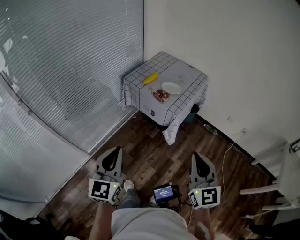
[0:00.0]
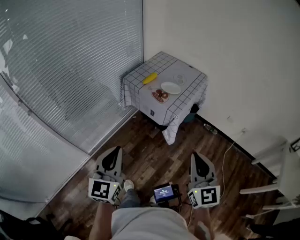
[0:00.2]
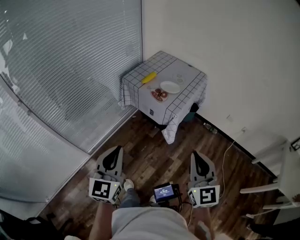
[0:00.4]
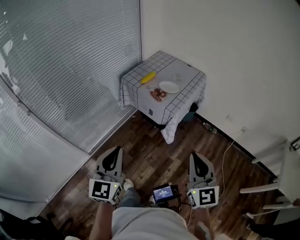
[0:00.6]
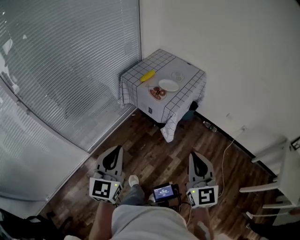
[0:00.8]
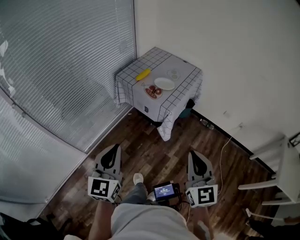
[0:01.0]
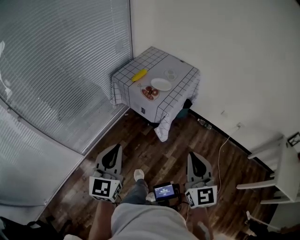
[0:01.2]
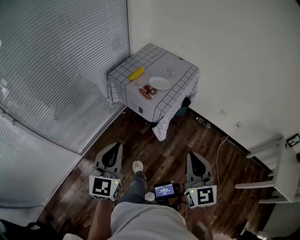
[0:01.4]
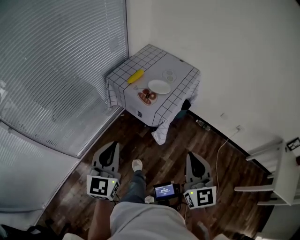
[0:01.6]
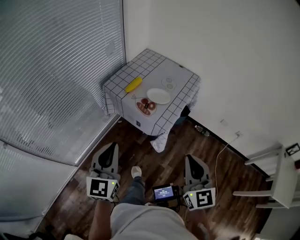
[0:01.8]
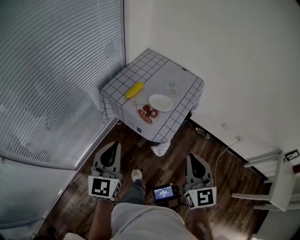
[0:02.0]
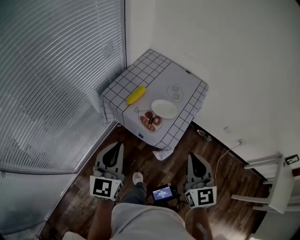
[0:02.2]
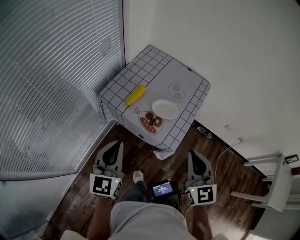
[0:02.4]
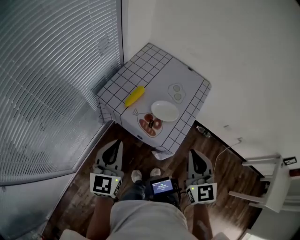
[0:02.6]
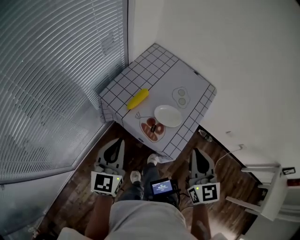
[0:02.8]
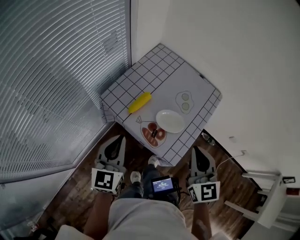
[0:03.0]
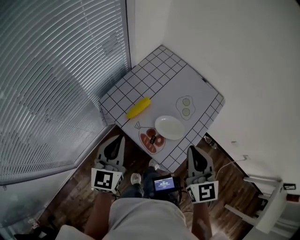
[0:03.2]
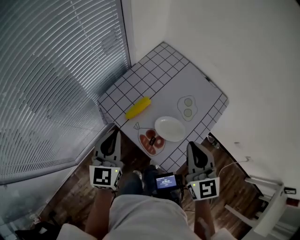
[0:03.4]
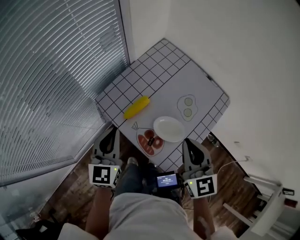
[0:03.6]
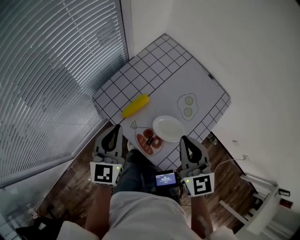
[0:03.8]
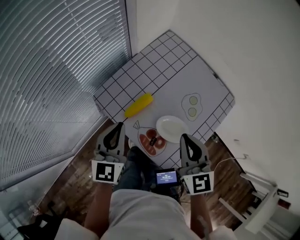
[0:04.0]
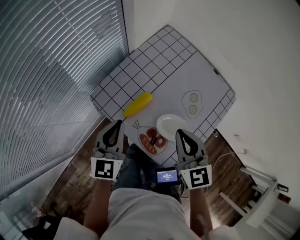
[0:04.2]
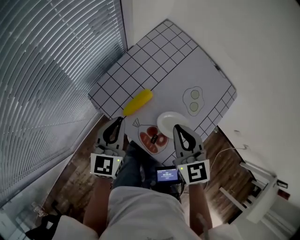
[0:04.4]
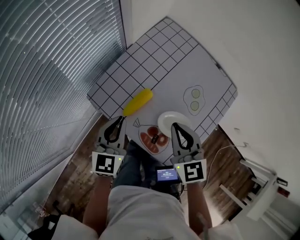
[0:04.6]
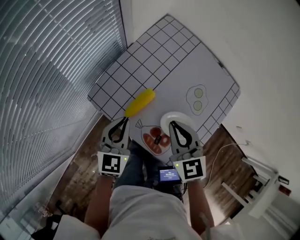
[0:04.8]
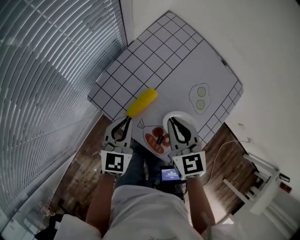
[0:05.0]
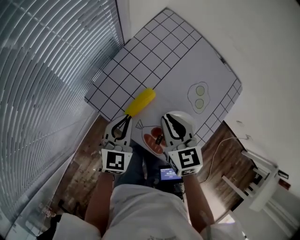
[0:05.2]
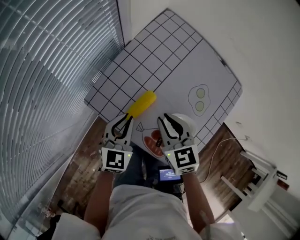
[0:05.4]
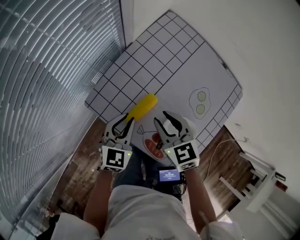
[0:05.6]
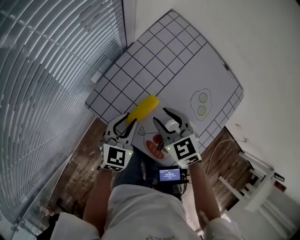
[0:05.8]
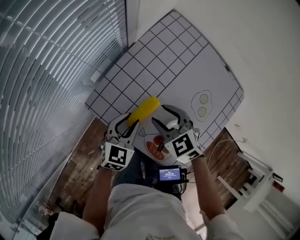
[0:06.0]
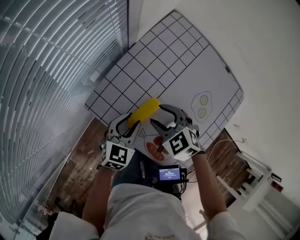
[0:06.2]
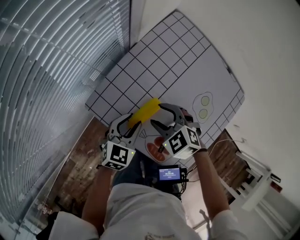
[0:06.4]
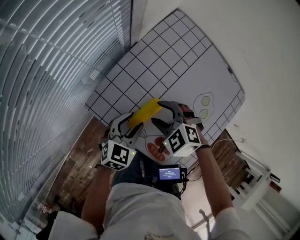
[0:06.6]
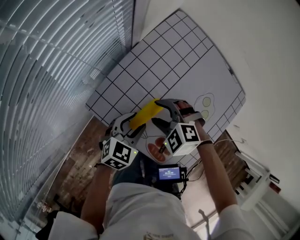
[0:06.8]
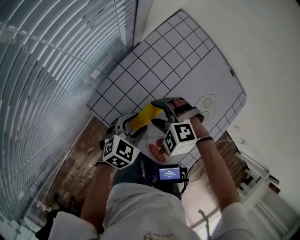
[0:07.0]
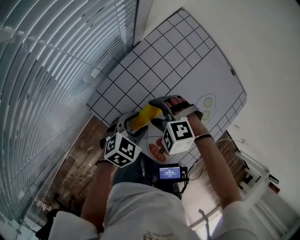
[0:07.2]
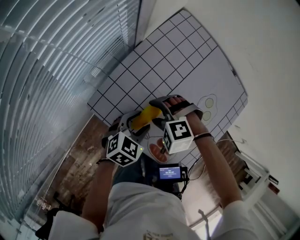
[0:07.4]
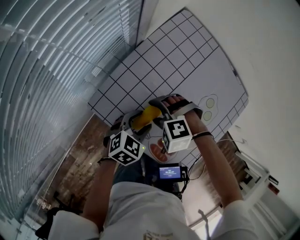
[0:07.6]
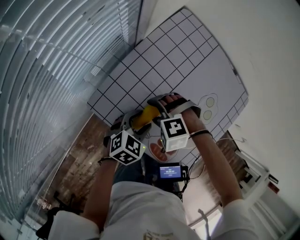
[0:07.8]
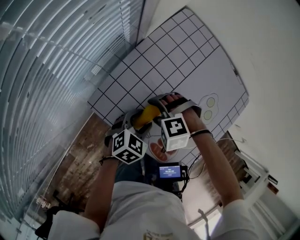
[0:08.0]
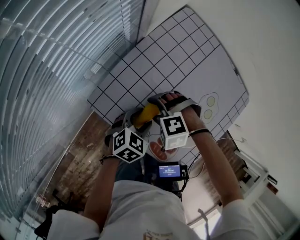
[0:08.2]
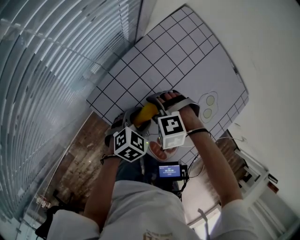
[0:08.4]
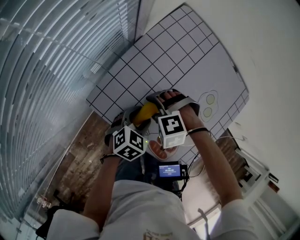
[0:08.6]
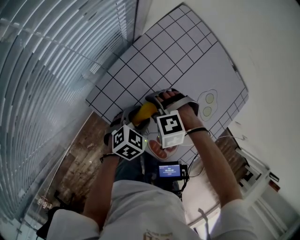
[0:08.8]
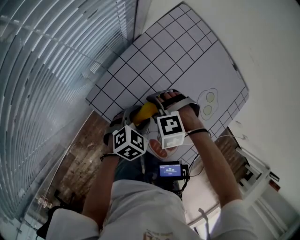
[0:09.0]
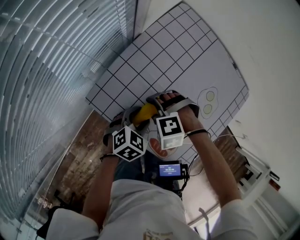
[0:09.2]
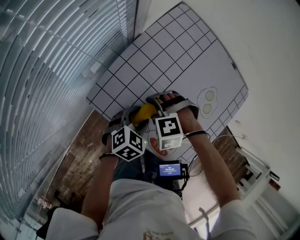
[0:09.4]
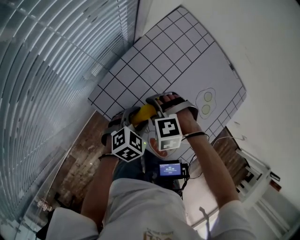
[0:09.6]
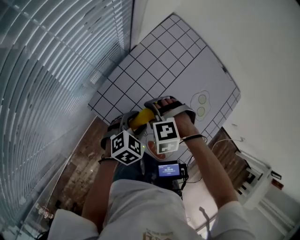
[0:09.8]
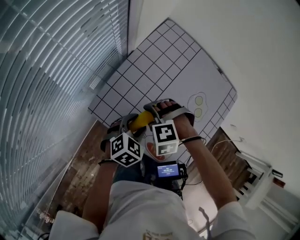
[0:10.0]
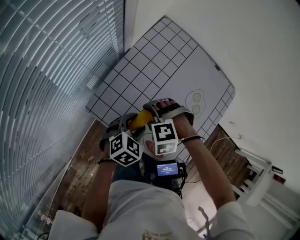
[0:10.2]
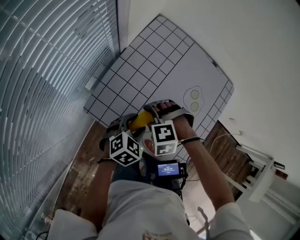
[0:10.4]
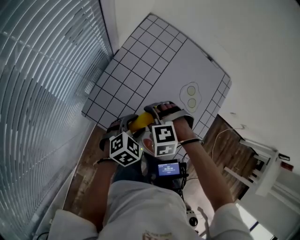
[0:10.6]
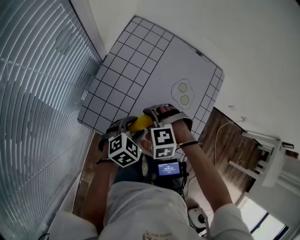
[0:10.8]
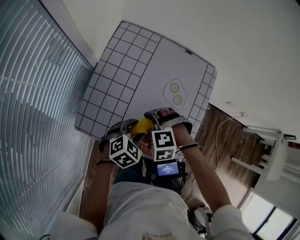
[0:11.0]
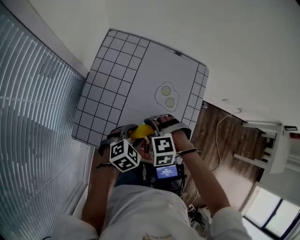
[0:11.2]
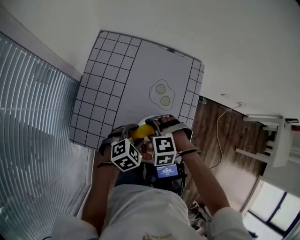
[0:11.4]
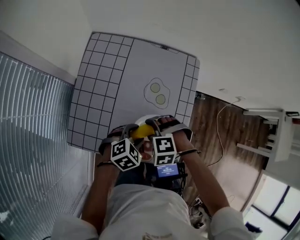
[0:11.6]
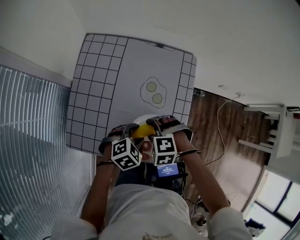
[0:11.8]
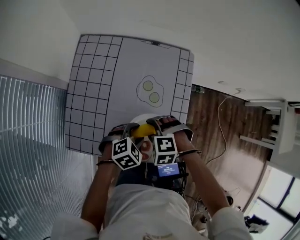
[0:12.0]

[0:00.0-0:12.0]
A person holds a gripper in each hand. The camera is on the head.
0:00.0 to 0:01.6: Both grippers move forward, some 10 cm.
0:01.6 to 0:03.0: Both grippers travel together forward, roughly 35 cm.
0:03.0 to 0:04.4: The two grippers go roughly 20 cm forward and downward.
0:04.4 to 0:06.0: The left gripper heads downward, covering approximately 10 cm, swivels about 20 degrees, and opens up. Meanwhile the right gripper shifts approximately 15 cm downward, to the left and forward, swivels roughly 30 degrees, and opens up.
0:06.0 to 0:07.6: The right gripper shifts approximately 5 cm downward, and rolls counterclockwise, seen from behind, by some 50 degrees; the left gripper changes its angle by roughly 20 degrees, and opens its fingers.
0:07.6 to 0:09.0: The grippers move only a little.
0:09.0 to 0:10.4: The left gripper moves roughly 5 cm; the right gripper moves some 5 cm.
0:10.4 to 0:12.0: The left gripper shifts by roughly 15 cm, and rotates roughly 40 degrees; the right gripper ends up some 15 cm from where it was, and turns by some 30 degrees.

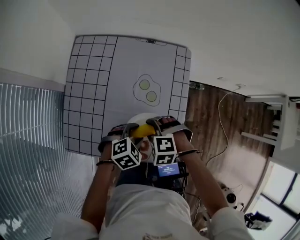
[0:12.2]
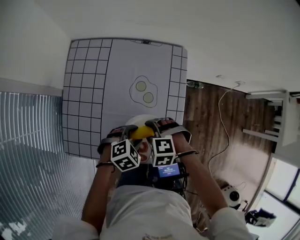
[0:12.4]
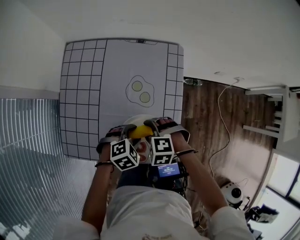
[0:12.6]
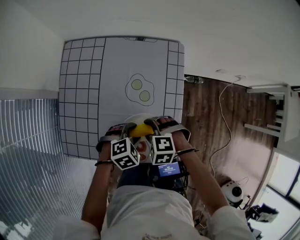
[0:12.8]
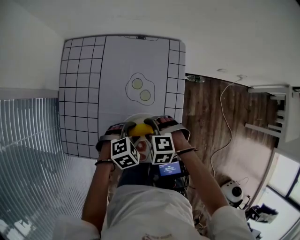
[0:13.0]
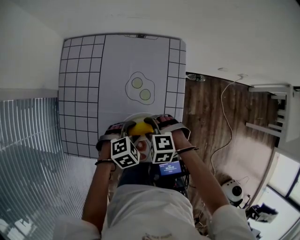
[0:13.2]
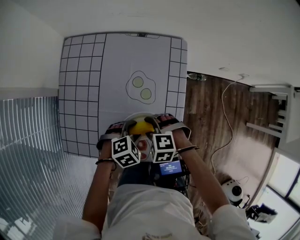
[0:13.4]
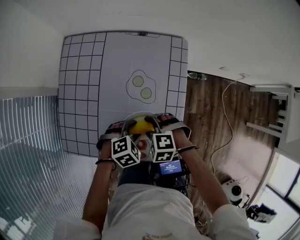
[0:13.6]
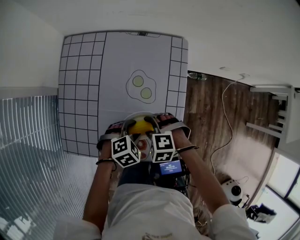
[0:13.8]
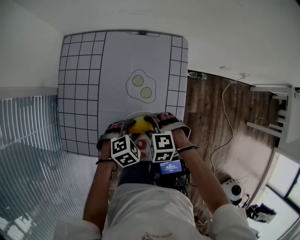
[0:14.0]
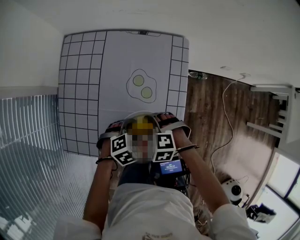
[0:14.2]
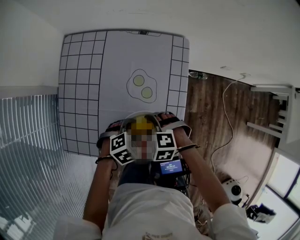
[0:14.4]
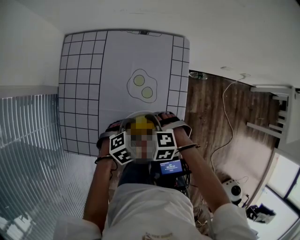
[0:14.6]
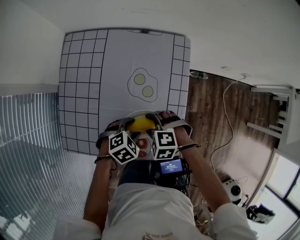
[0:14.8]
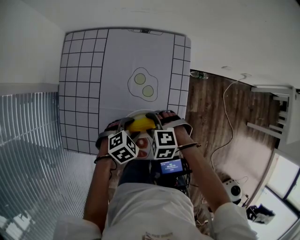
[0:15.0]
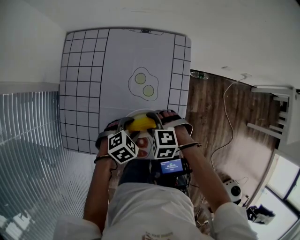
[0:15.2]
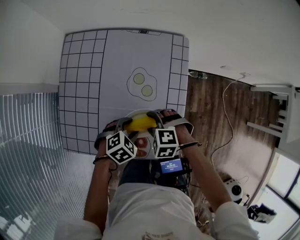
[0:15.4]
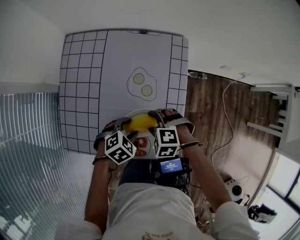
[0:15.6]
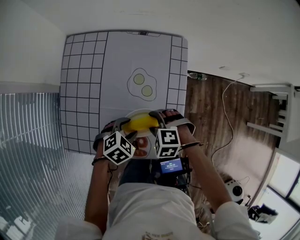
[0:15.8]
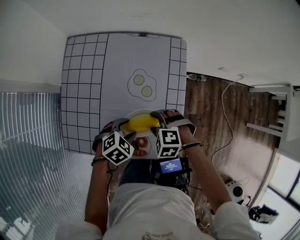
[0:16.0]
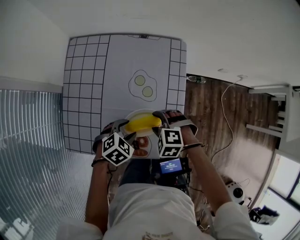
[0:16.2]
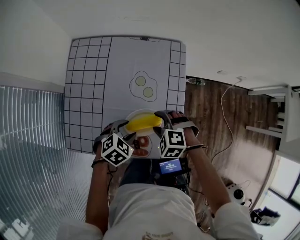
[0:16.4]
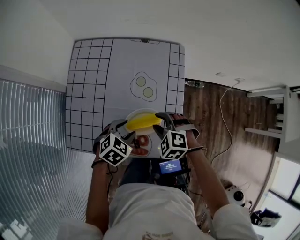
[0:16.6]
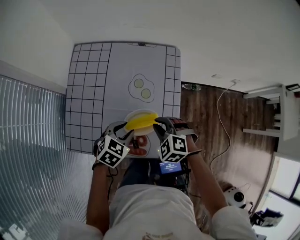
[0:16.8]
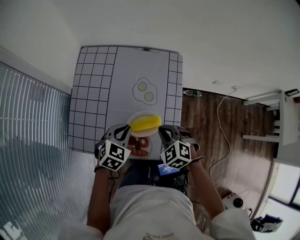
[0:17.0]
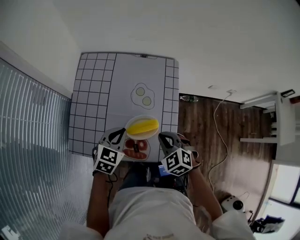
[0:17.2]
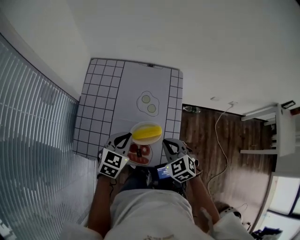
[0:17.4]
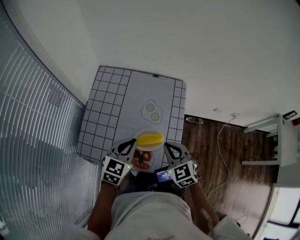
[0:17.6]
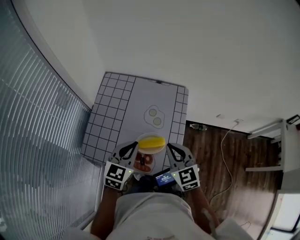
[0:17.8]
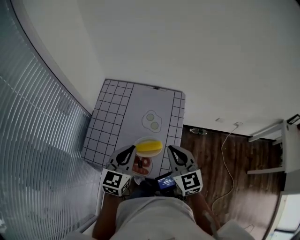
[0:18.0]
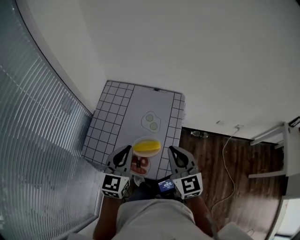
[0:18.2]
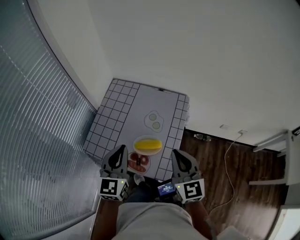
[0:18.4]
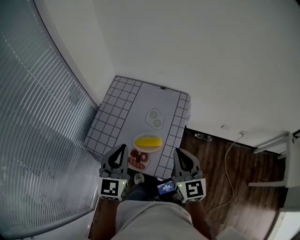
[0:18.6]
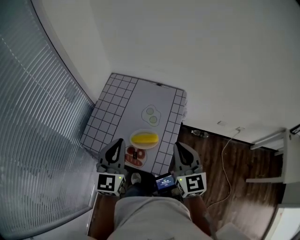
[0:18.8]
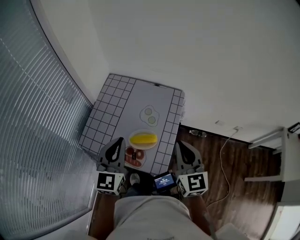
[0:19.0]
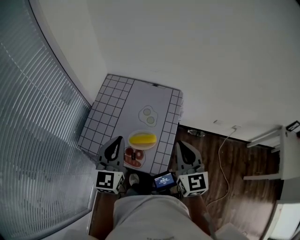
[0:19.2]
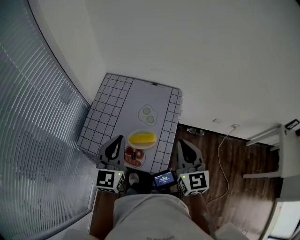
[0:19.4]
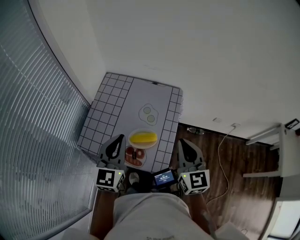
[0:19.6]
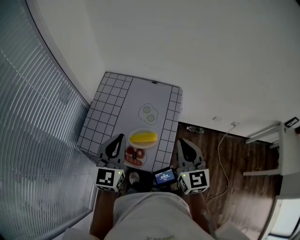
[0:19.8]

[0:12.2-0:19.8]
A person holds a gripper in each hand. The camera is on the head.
0:12.2 to 0:15.2: The grippers make only small movements.
0:15.2 to 0:16.8: The grippers both shift upward by roughly 5 cm. The left gripper swivels approximately 20 degrees. The right gripper turns by roughly 20 degrees, and closes its fingers.
0:16.8 to 0:18.2: The grippers both shift upward by approximately 20 cm. The right gripper tilts its fingers about 50 degrees upward. Meanwhile the left gripper tilts its fingers roughly 40 degrees upward, and closes.
0:18.2 to 0:19.8: The grippers move only a little.

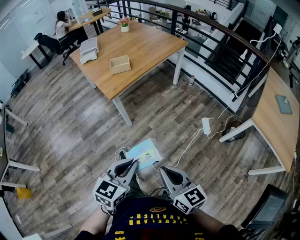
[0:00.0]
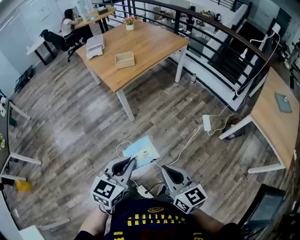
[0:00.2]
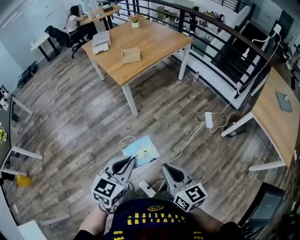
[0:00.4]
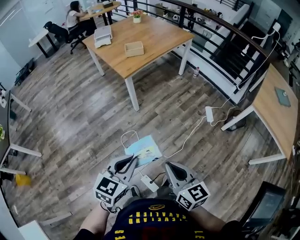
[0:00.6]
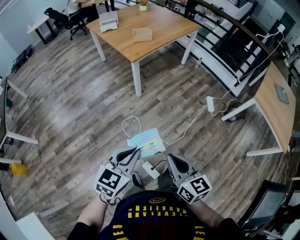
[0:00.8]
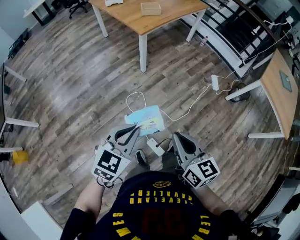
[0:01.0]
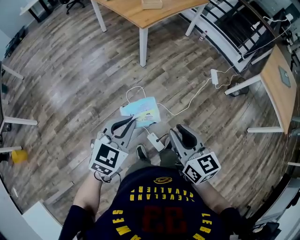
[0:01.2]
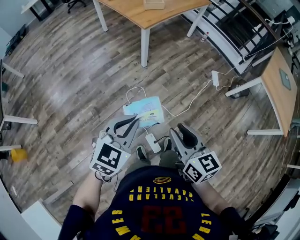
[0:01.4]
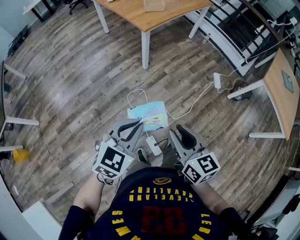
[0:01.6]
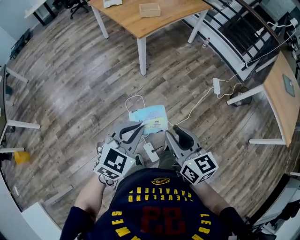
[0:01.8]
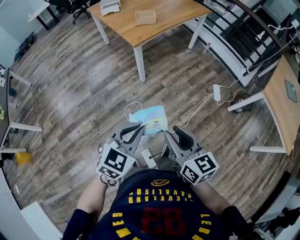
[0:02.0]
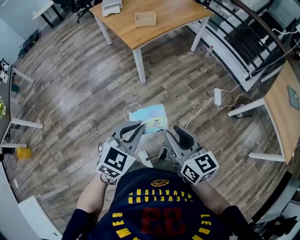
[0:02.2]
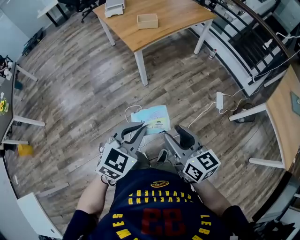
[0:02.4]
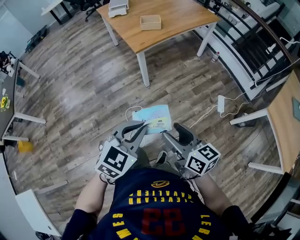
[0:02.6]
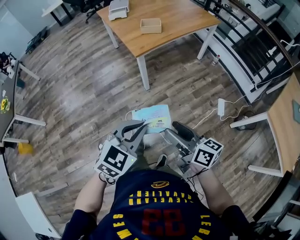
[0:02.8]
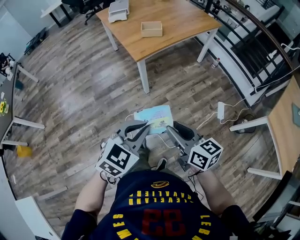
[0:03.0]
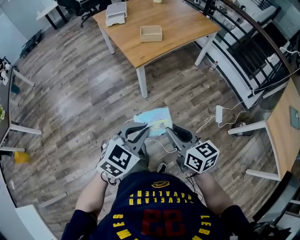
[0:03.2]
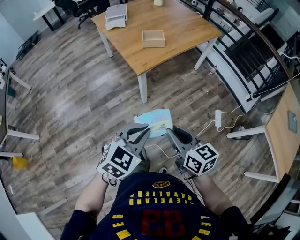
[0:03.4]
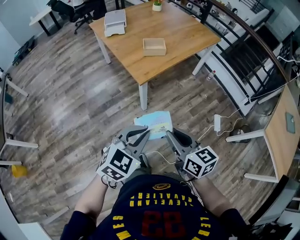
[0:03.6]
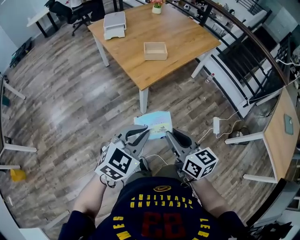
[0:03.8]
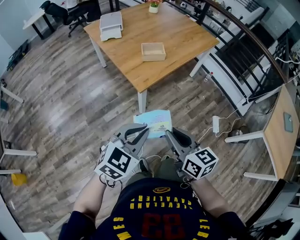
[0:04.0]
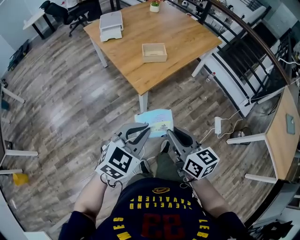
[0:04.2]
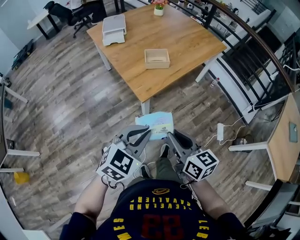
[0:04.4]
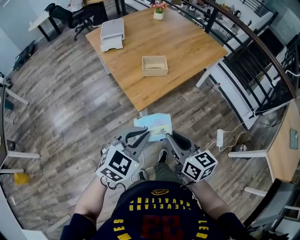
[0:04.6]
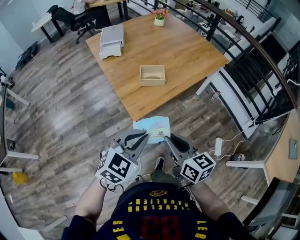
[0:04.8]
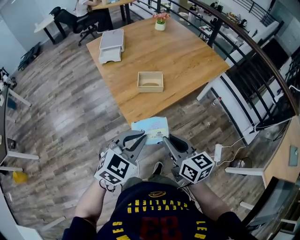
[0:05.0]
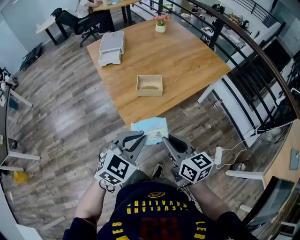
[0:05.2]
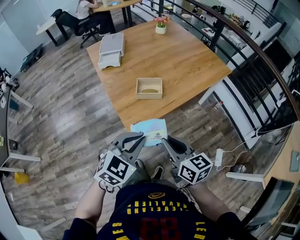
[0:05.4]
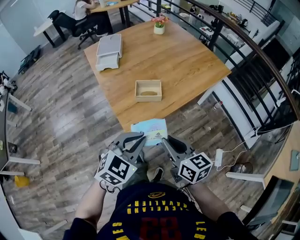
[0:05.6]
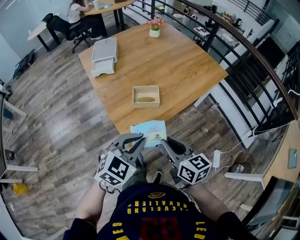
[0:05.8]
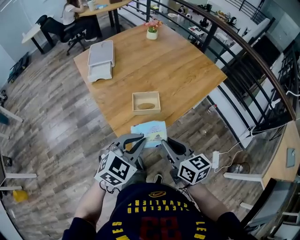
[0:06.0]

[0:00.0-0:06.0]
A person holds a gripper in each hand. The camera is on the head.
0:00.0 to 0:01.6: Both grippers move backward and to the left, about 30 cm. The right gripper opens.
0:01.6 to 0:03.0: The grippers both shift forward and to the right by approximately 25 cm. The right gripper changes its angle by approximately 20 degrees, and opens and closes again.
0:03.0 to 0:04.4: The two grippers go approximately 25 cm forward and to the left.
0:04.4 to 0:06.0: Both grippers move forward, some 25 cm.
